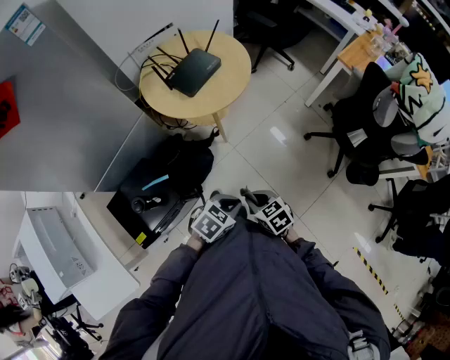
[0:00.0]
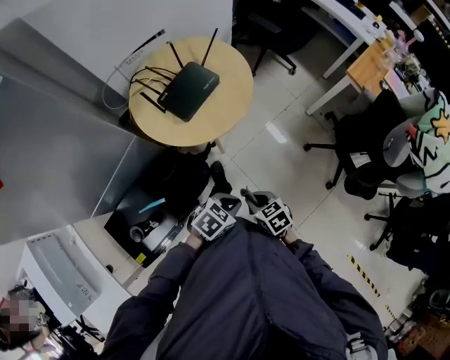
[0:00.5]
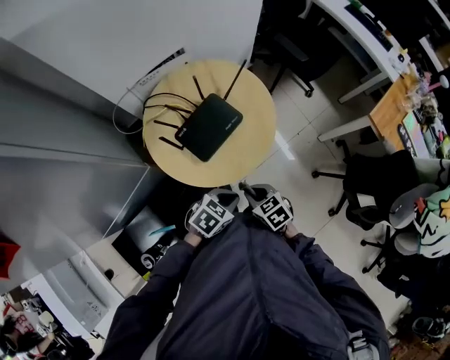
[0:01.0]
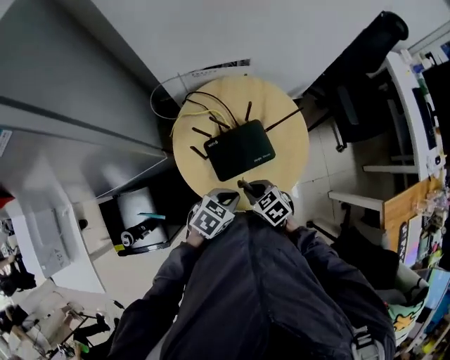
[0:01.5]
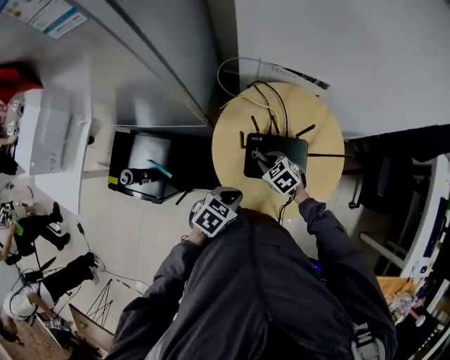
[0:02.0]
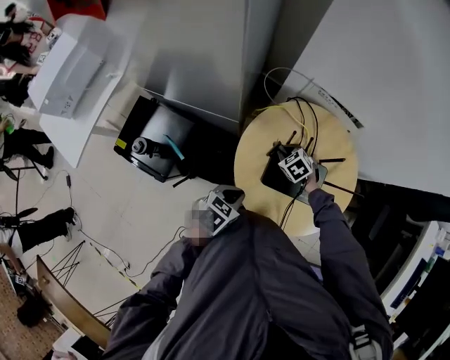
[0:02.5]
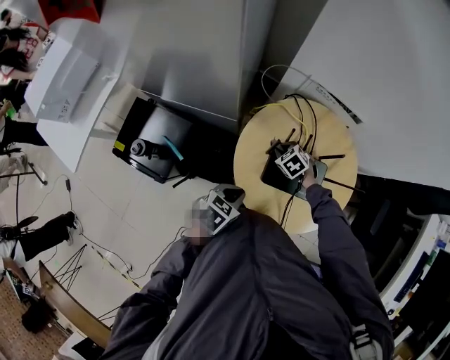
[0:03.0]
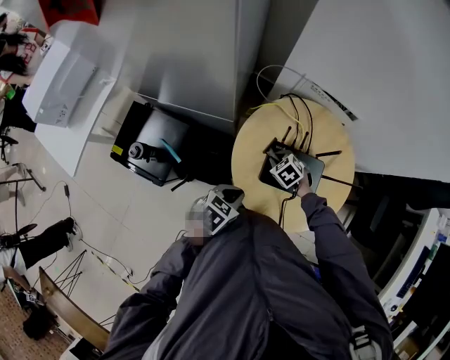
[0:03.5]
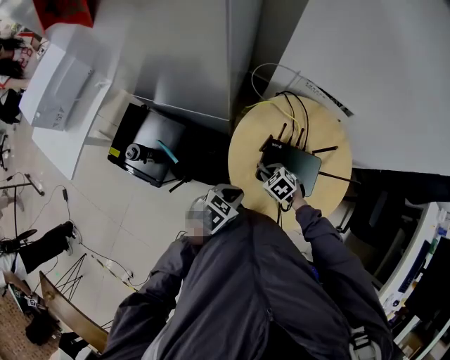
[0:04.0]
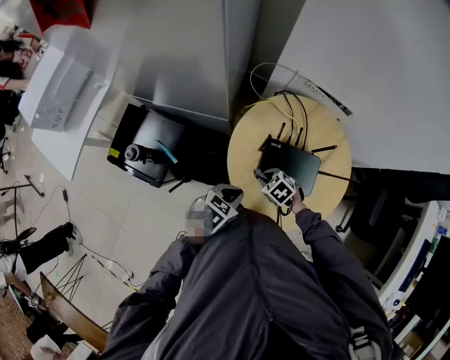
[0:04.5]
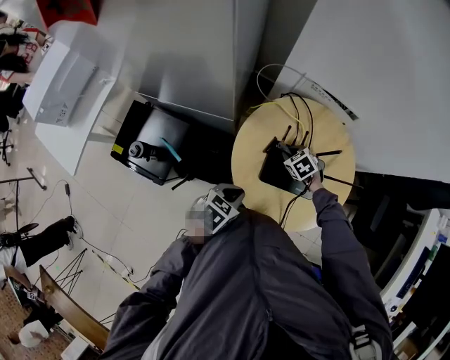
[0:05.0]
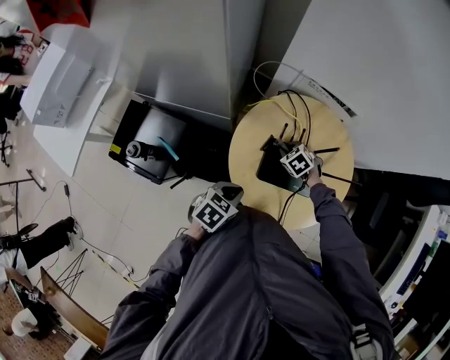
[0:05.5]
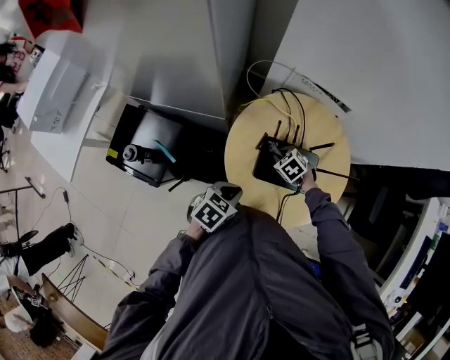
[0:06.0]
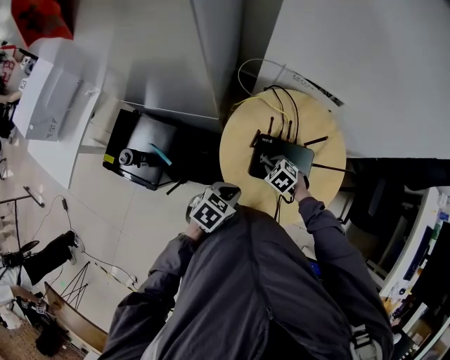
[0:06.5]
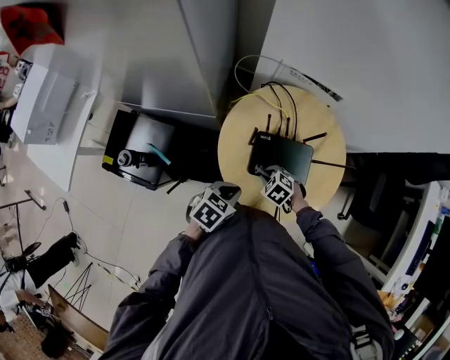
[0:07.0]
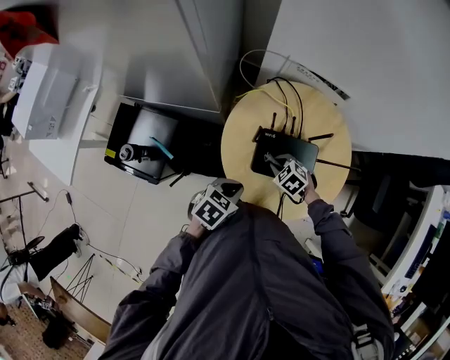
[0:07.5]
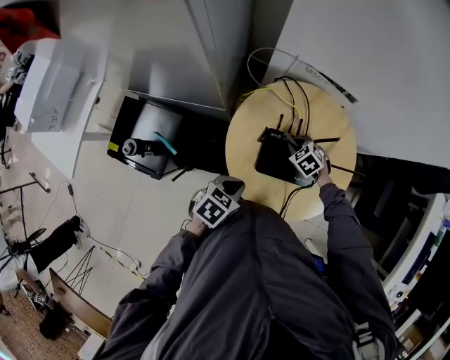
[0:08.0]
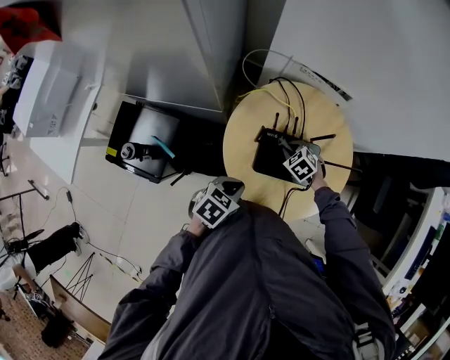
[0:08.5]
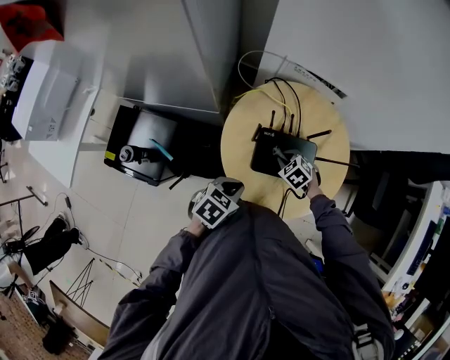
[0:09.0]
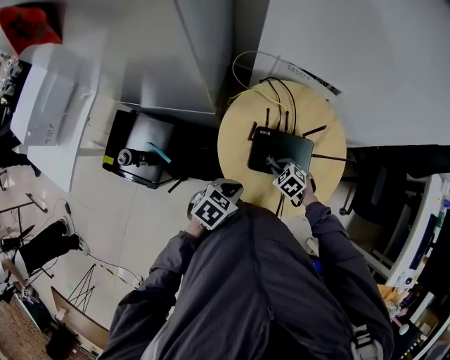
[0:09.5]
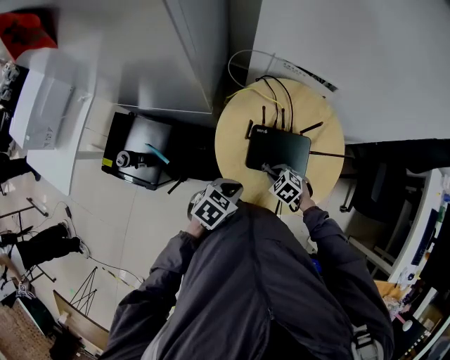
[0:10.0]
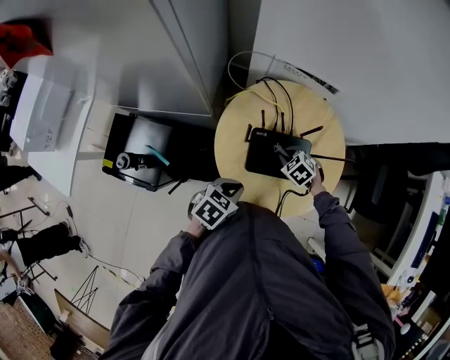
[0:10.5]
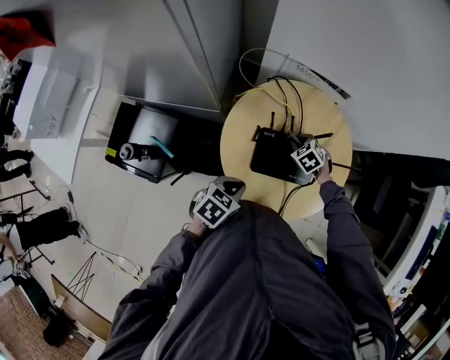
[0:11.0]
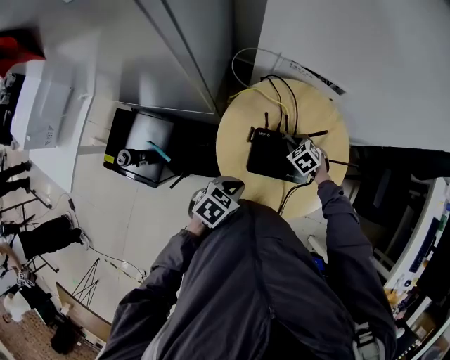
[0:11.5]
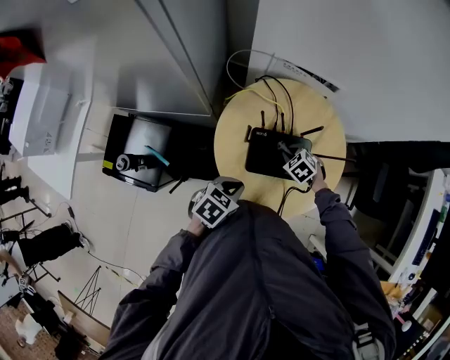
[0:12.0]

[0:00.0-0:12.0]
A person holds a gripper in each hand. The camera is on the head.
0:00.0 to 0:02.0: The two grippers travel together, about 50 cm. The left gripper swivels some 60 degrees, while the right gripper rotates around the line of its fingers by approximately 60 degrees, counterclockwise from behind.
0:02.0 to 0:04.0: The right gripper shifts by roughly 5 cm.
0:04.0 to 0:06.0: The right gripper moves some 10 cm.
0:08.0 to 0:10.0: The right gripper moves about 15 cm.
0:10.0 to 0:12.0: The right gripper ends up approximately 10 cm from where it was.

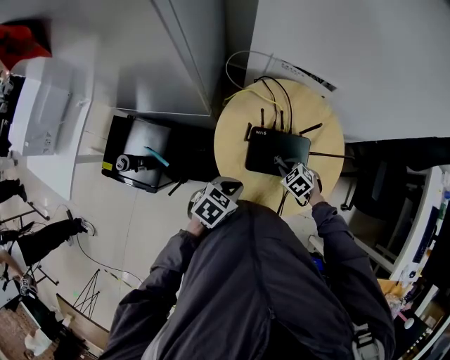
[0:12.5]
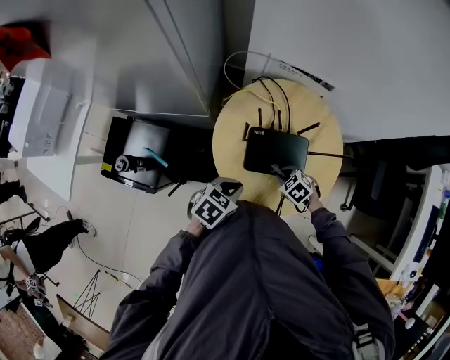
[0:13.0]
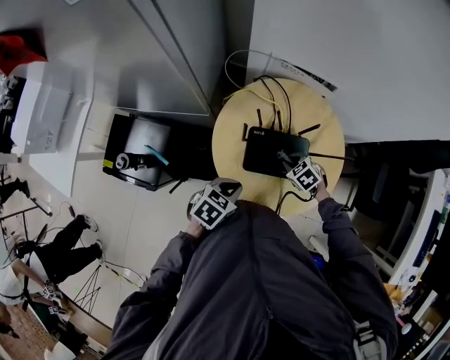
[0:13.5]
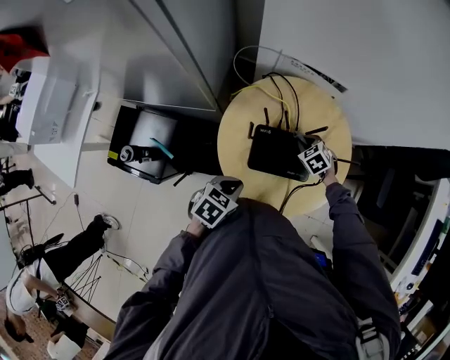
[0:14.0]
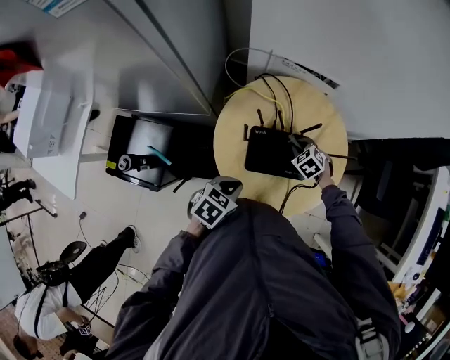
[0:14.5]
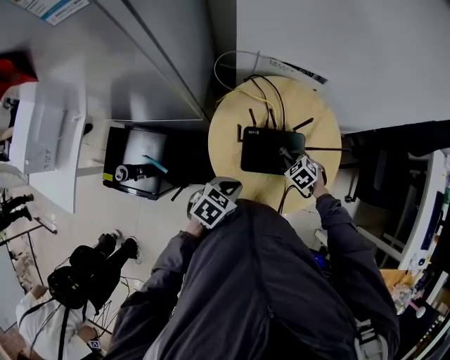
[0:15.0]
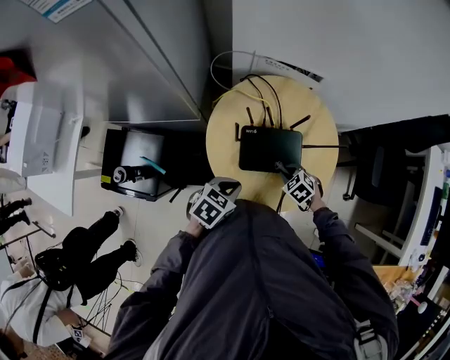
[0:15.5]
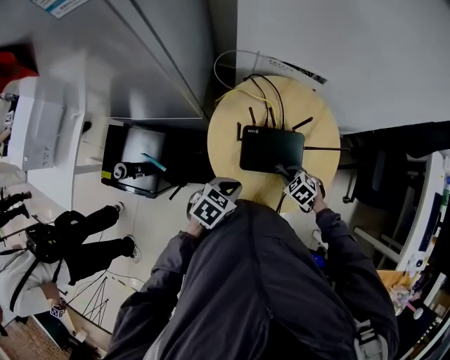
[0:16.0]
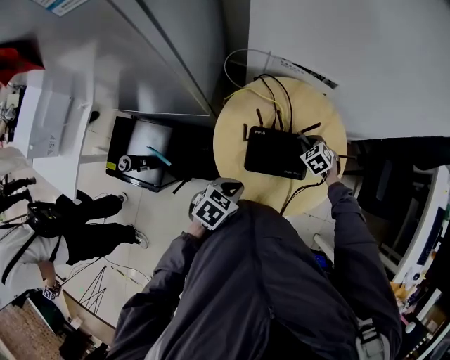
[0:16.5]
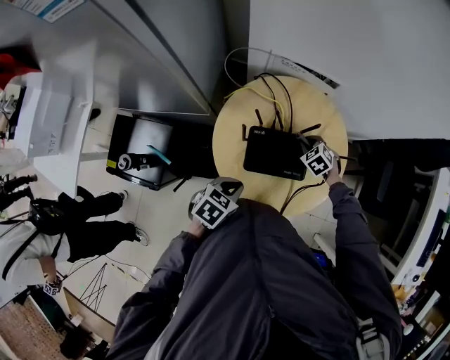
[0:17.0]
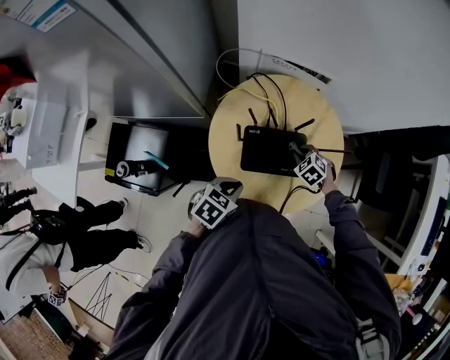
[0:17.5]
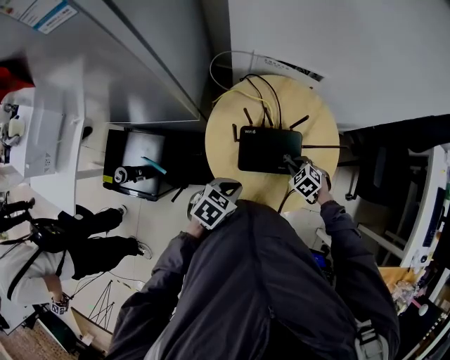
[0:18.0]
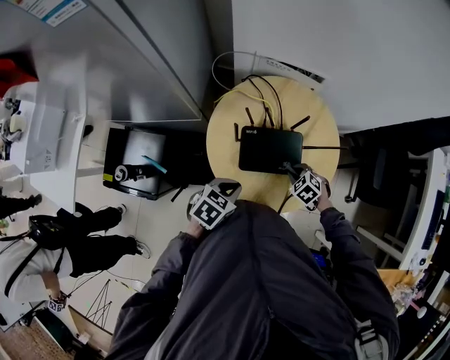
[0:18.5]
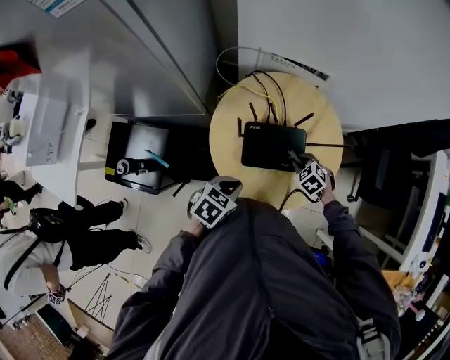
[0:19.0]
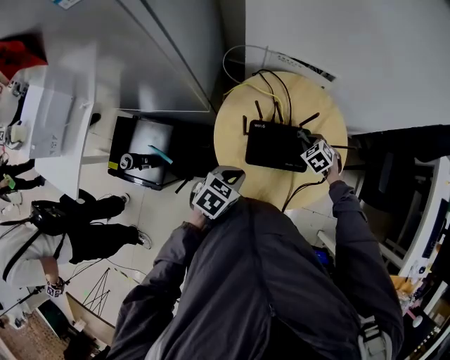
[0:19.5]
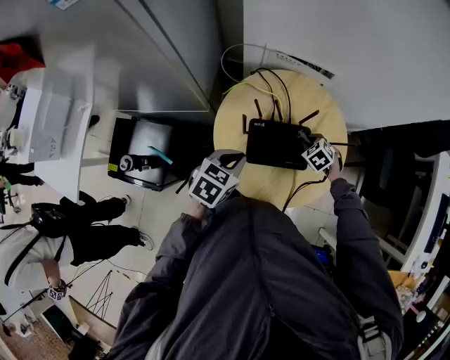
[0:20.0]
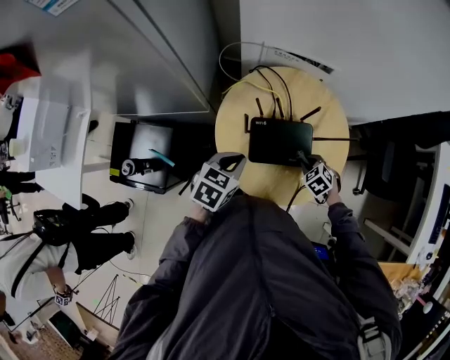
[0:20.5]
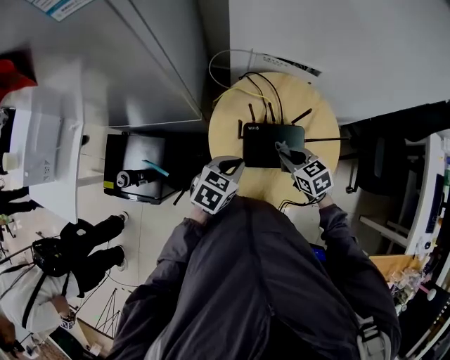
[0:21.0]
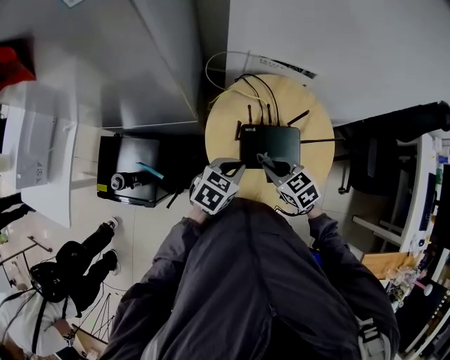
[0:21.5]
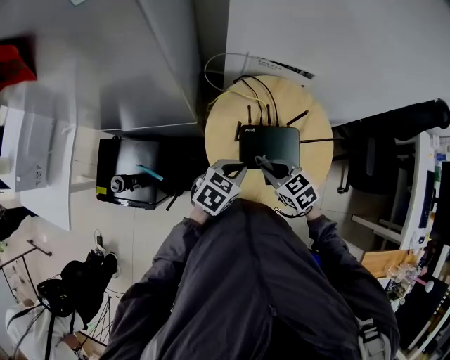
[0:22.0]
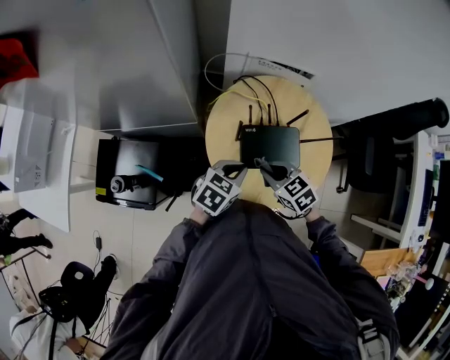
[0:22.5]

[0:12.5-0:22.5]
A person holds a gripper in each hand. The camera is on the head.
0:12.5 to 0:14.5: The right gripper moves about 10 cm.
0:14.5 to 0:16.5: The right gripper moves roughly 15 cm backward and comes back.
0:16.5 to 0:18.5: The right gripper travels backward by some 15 cm.
0:18.5 to 0:20.5: The left gripper heads forward, covering some 5 cm. The right gripper reaches about 10 cm forward, then returns.
0:20.5 to 0:22.5: The right gripper travels to the left and upward by about 20 cm, and changes its angle by approximately 30 degrees.

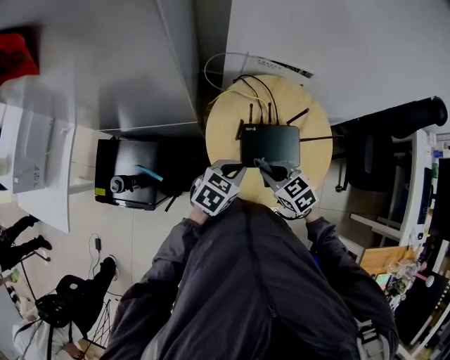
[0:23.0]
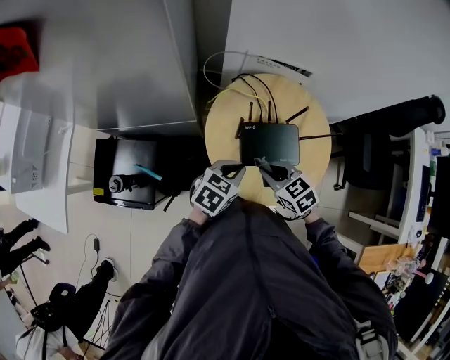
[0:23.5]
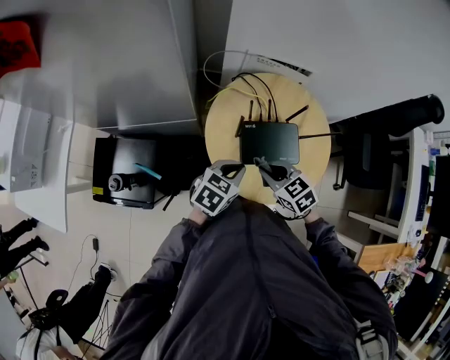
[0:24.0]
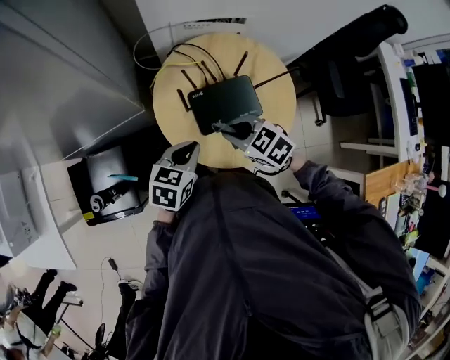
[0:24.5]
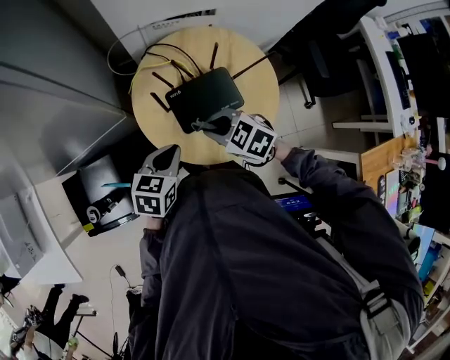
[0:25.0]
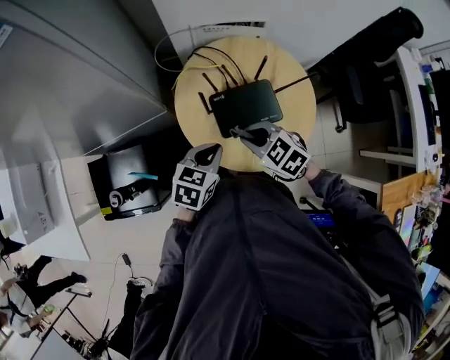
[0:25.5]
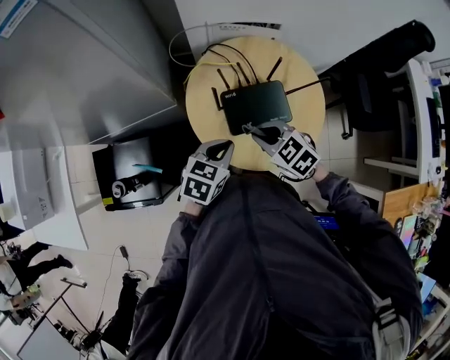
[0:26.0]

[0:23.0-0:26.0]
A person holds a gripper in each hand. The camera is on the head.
0:23.0 to 0:26.0: The grippers make only small movements.

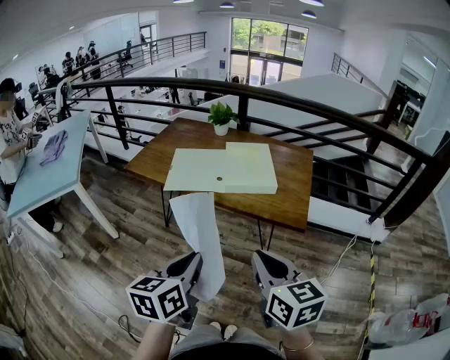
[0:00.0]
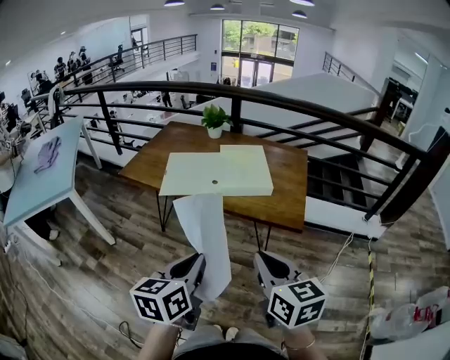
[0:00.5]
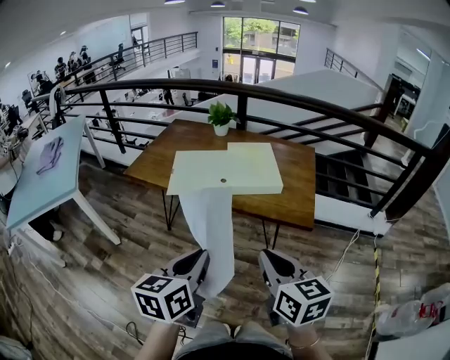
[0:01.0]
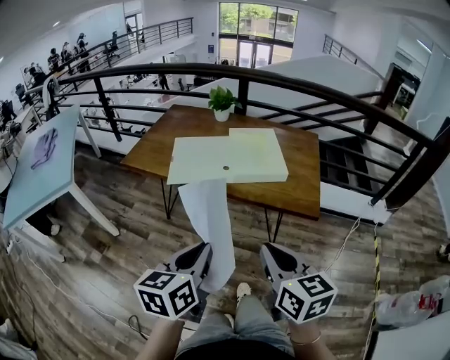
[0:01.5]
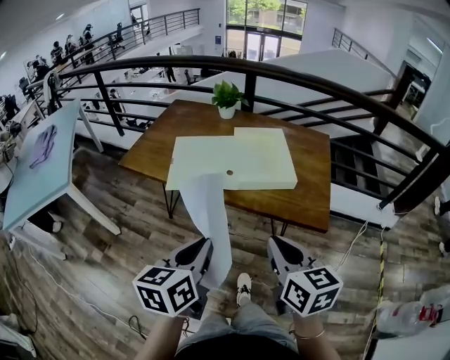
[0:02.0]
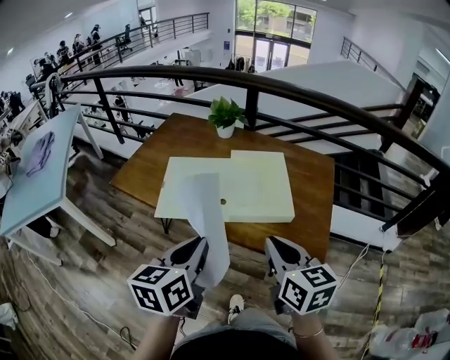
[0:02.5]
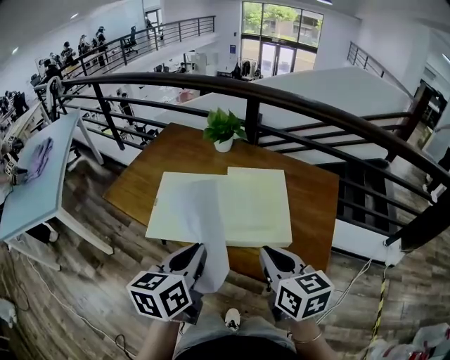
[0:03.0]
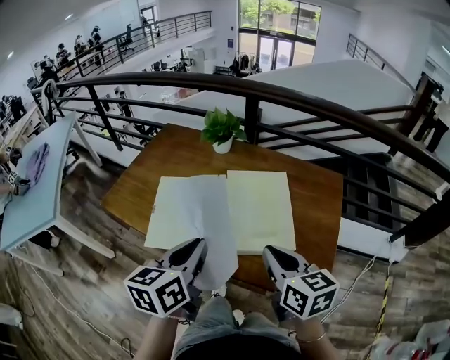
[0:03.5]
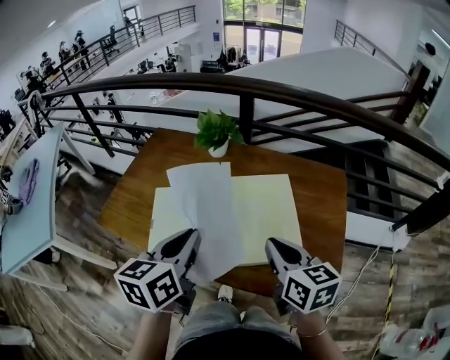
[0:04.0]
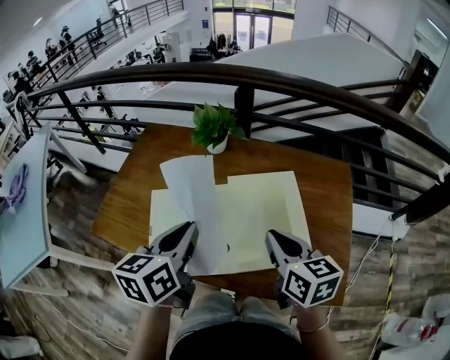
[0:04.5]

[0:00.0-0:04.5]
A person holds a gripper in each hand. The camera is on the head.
0:00.0 to 0:02.0: Both grippers move forward, roughly 10 cm.
0:02.0 to 0:04.5: Both grippers move forward, some 35 cm.
